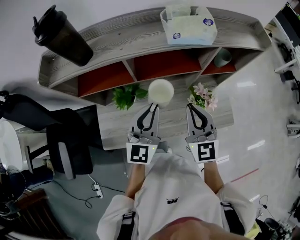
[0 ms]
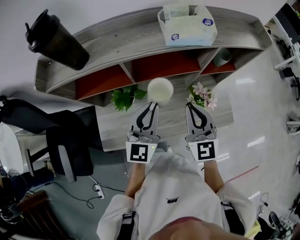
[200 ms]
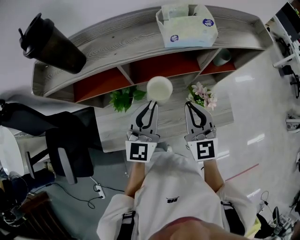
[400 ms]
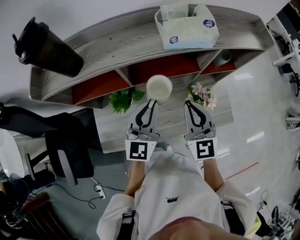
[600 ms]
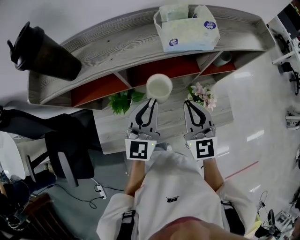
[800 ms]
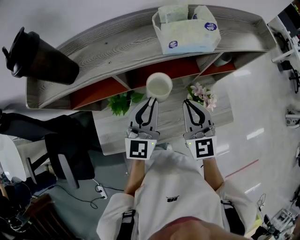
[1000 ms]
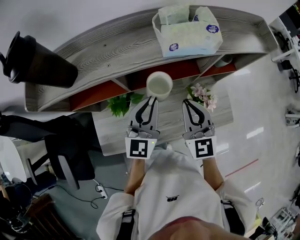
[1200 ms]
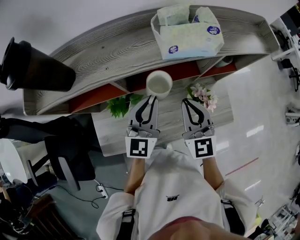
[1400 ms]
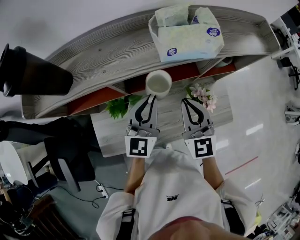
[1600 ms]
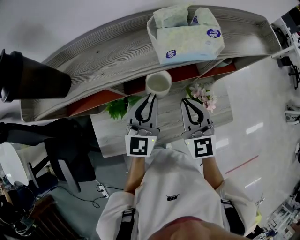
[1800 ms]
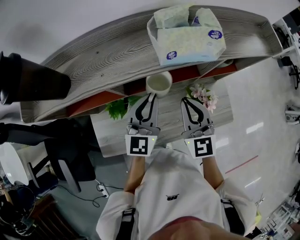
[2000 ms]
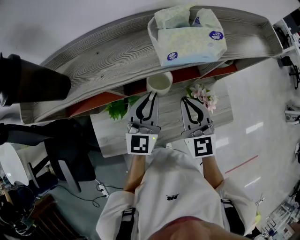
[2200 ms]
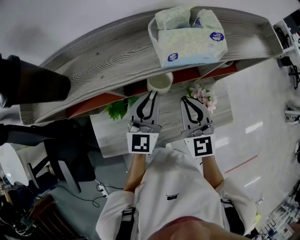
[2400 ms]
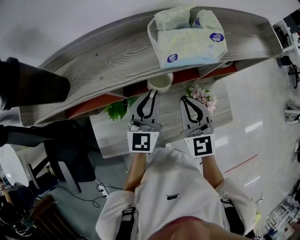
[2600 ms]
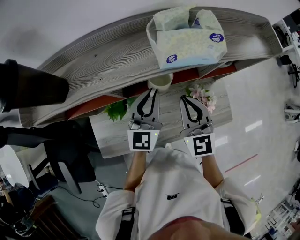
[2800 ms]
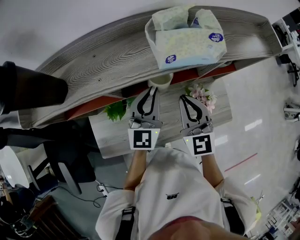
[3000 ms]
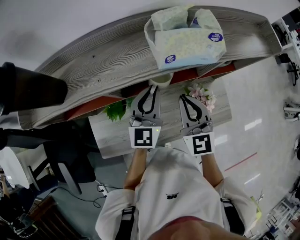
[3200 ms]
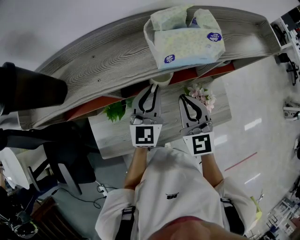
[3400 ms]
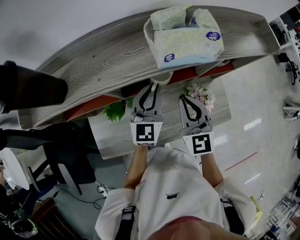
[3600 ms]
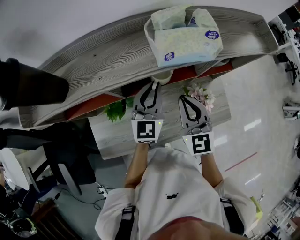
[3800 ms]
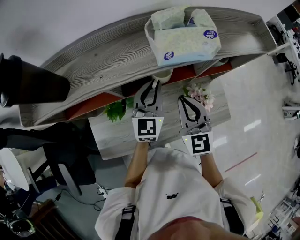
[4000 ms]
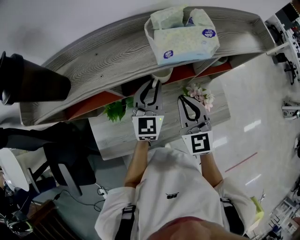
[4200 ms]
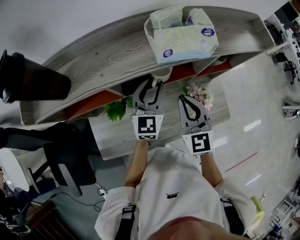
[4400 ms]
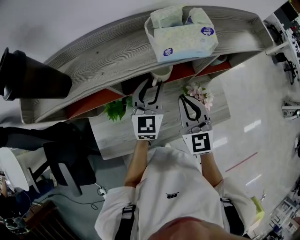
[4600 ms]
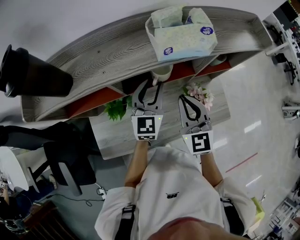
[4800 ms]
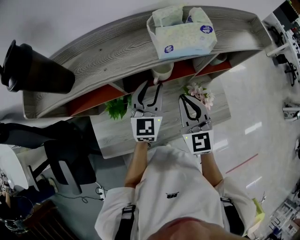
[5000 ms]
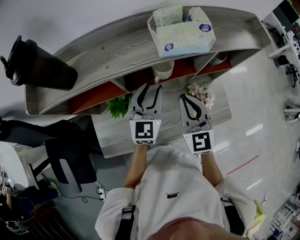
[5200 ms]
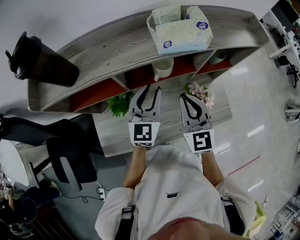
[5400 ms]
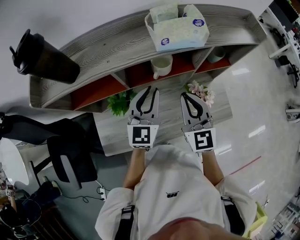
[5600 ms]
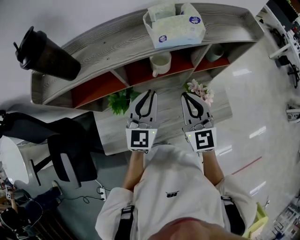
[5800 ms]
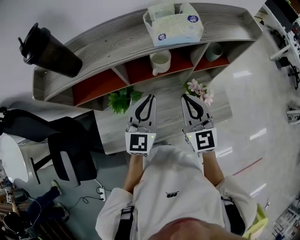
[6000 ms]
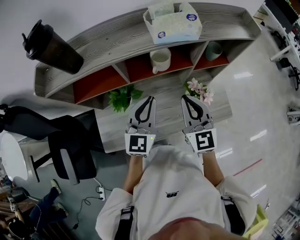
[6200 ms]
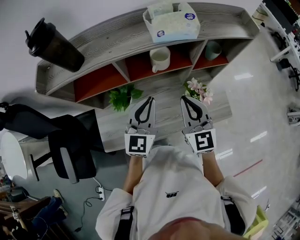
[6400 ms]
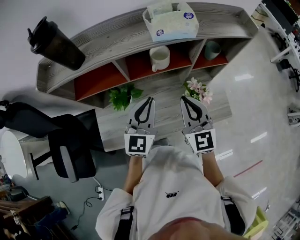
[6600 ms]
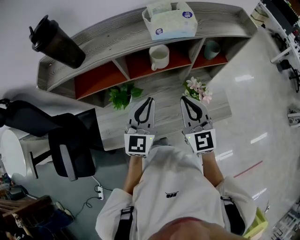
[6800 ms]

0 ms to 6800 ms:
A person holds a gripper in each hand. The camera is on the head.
0 ms to 1400 ms: Both grippers move forward, roughly 10 cm.
1400 ms to 2800 ms: There are only small adjustments of the grippers.
2800 ms to 4000 ms: The grippers move only a little.
4000 ms to 5400 ms: The left gripper travels backward by about 5 cm.
5400 ms to 6800 ms: The left gripper shifts some 10 cm backward, and closes its fingers; the right gripper is displaced backward by about 5 cm.

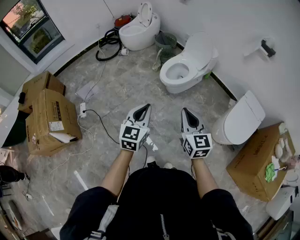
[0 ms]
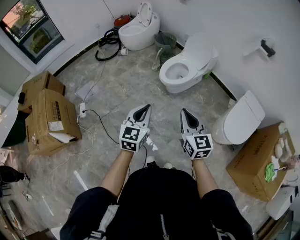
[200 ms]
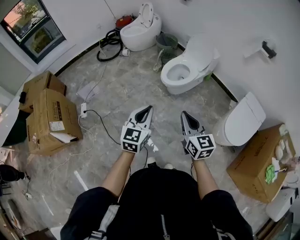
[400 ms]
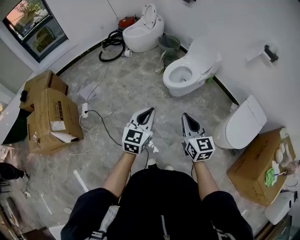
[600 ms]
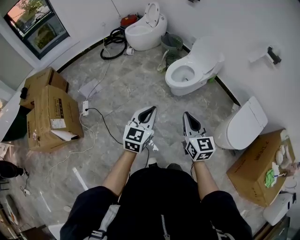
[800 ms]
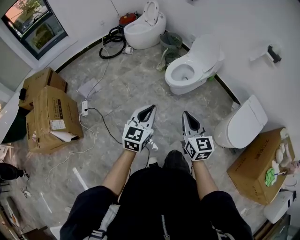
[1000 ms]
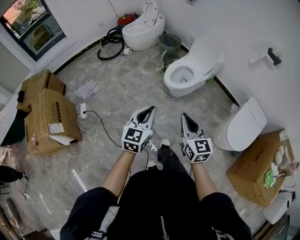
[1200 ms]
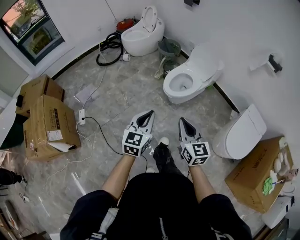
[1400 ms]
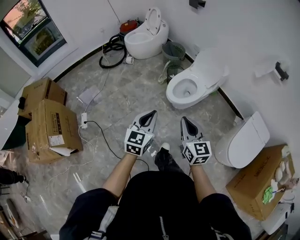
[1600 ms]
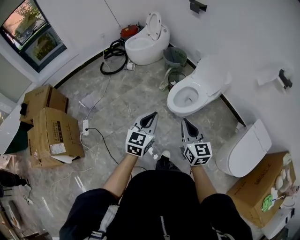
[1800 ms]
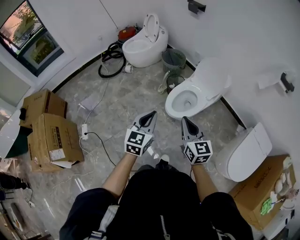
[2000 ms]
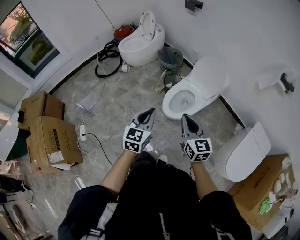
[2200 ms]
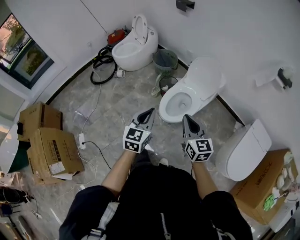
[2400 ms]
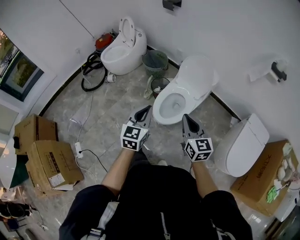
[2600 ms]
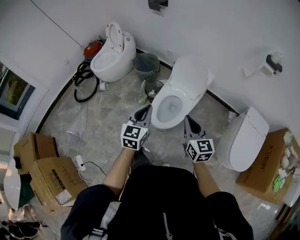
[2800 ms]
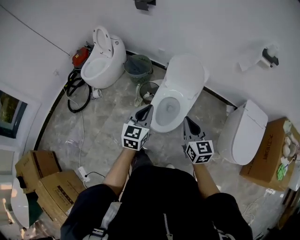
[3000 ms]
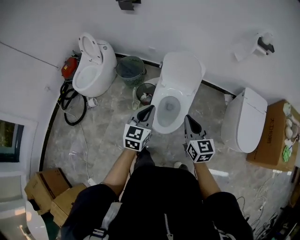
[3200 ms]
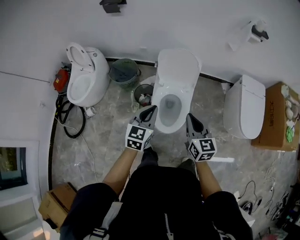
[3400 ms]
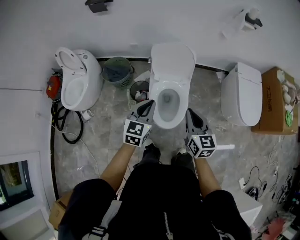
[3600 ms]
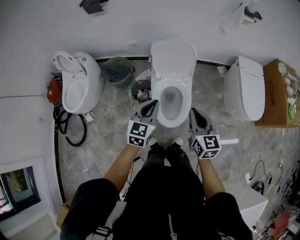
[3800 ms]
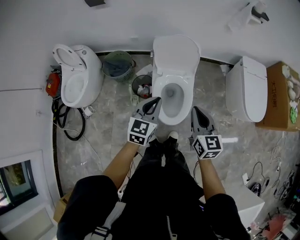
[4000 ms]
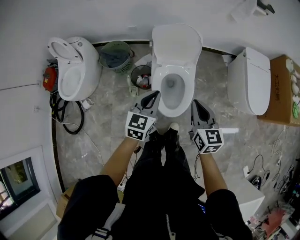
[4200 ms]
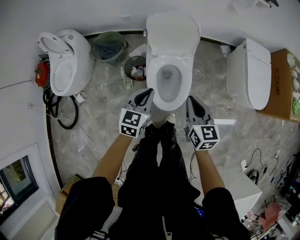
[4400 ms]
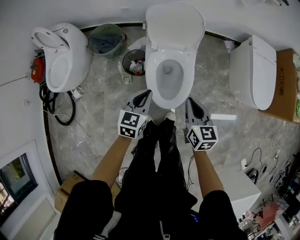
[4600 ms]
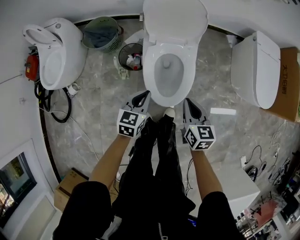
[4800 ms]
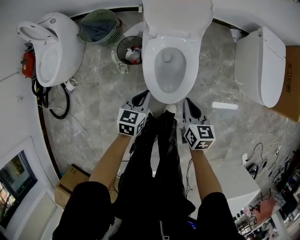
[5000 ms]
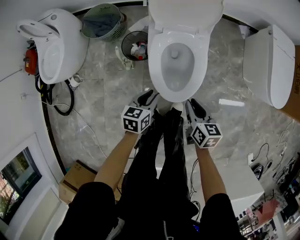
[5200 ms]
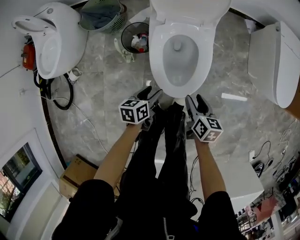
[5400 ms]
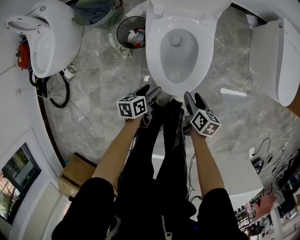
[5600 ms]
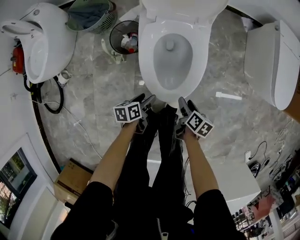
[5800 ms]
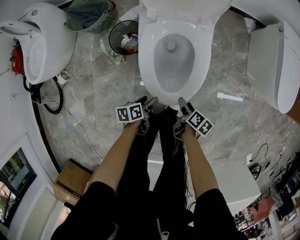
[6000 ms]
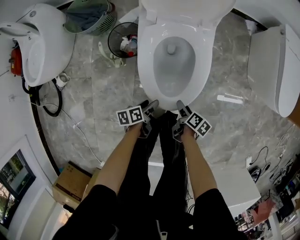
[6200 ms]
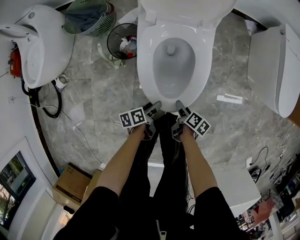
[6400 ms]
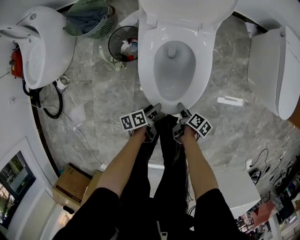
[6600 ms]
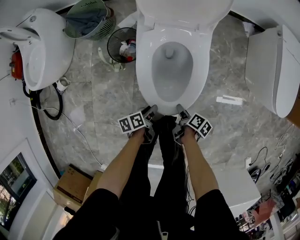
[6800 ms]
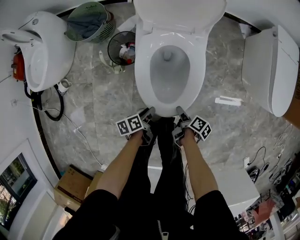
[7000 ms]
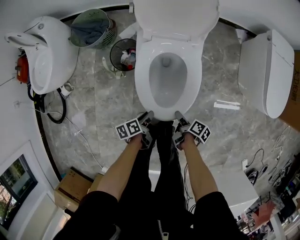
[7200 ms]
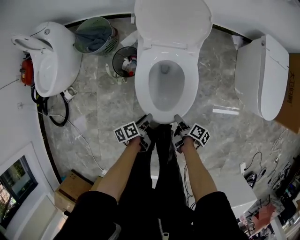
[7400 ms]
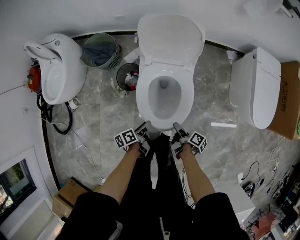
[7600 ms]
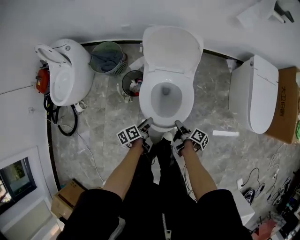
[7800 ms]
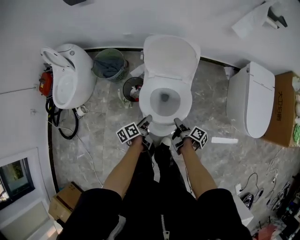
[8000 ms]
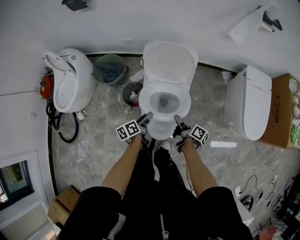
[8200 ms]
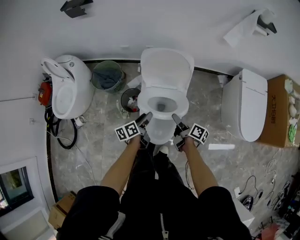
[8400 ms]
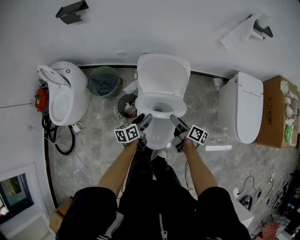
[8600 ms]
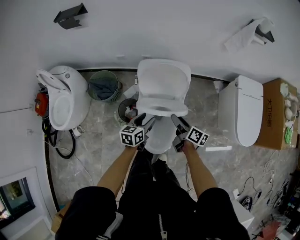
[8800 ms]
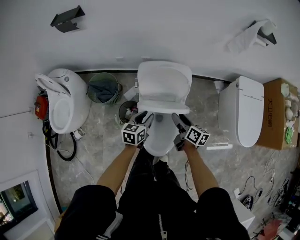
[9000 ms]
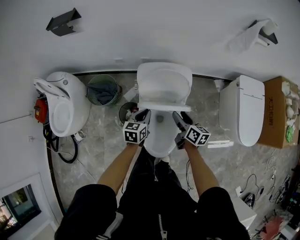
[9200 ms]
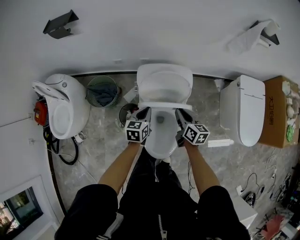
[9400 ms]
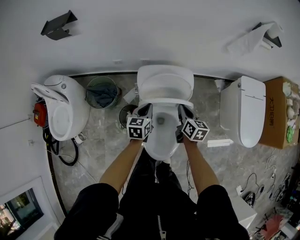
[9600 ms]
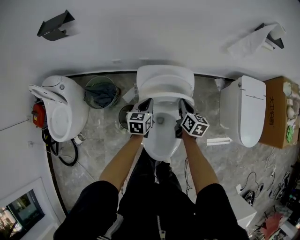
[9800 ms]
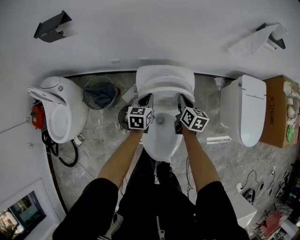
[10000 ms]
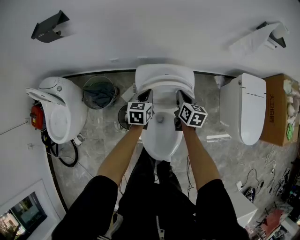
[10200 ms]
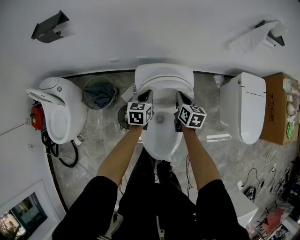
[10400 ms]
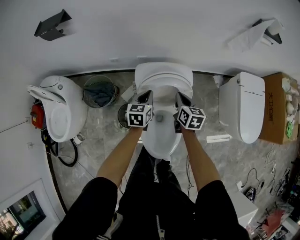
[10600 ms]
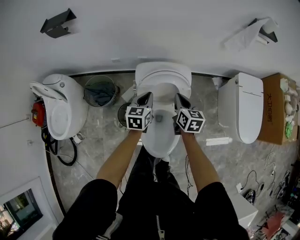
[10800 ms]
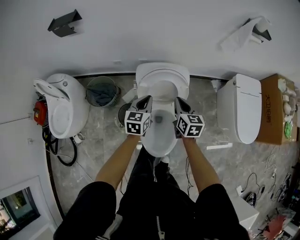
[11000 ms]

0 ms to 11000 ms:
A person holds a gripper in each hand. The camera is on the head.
0 ms to 1600 ms: Both grippers move forward, about 15 cm.
1600 ms to 3200 ms: The left gripper shifts by approximately 50 cm, and changes its angle by approximately 30 degrees; the right gripper shifts by approximately 40 cm, and rotates some 30 degrees.
3200 ms to 4800 ms: Both grippers travel together downward, roughly 25 cm. The right gripper changes its angle by some 30 degrees; the left gripper rotates approximately 30 degrees.
4800 ms to 6200 ms: Both grippers travel together downward, approximately 35 cm. The right gripper rolls clockwise, seen from behind, by approximately 50 degrees, and opens its fingers. The left gripper twists about 60 degrees counterclockwise, seen from behind, and opens its fingers.
6200 ms to 7800 ms: Both grippers move upward, about 25 cm. The left gripper closes up; the right gripper changes its angle by approximately 30 degrees, and closes.
7800 ms to 9400 ms: Both grippers move forward and upward, roughly 35 cm. The left gripper twists about 60 degrees clockwise, seen from behind, and closes its fingers, while the right gripper rotates around the line of its fingers by roughly 60 degrees, counterclockwise from behind, and opens, then closes again.
9400 ms to 11000 ms: Both grippers travel together upward, approximately 5 cm. The left gripper goes forward and returns, roughly 10 cm each way; the right gripper moves roughly 10 cm forward and comes back.

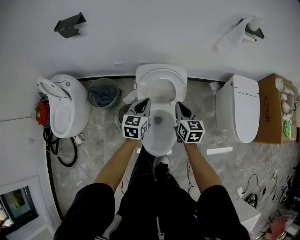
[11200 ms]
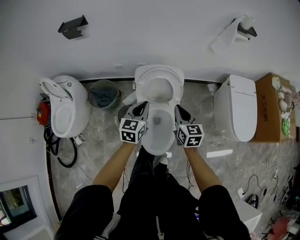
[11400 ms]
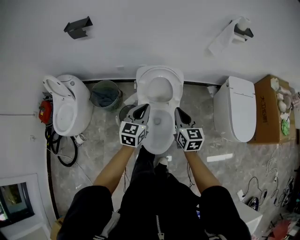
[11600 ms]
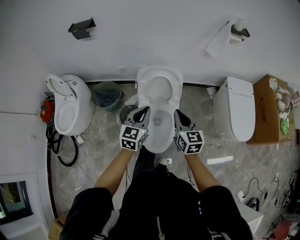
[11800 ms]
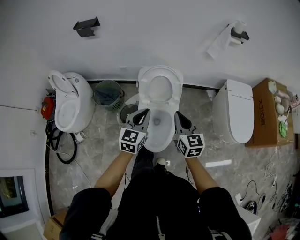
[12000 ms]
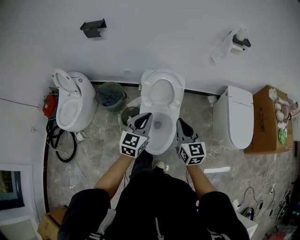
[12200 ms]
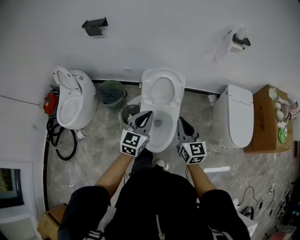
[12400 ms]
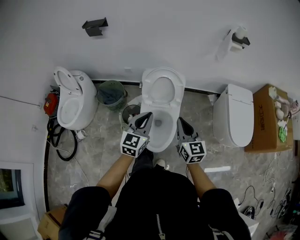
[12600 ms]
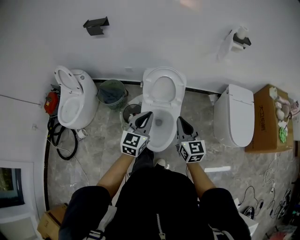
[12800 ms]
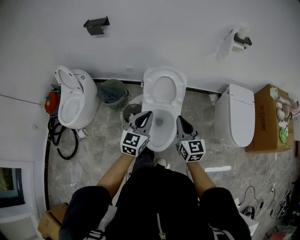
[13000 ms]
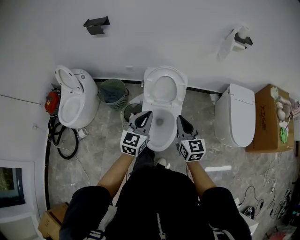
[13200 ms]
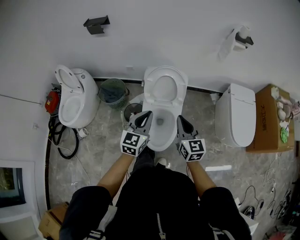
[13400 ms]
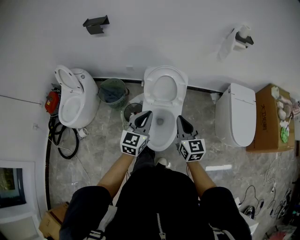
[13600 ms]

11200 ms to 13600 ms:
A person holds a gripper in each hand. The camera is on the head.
11200 ms to 12400 ms: Both grippers move backward and upward, about 25 cm.
12400 ms to 13600 ms: The grippers move only a little.

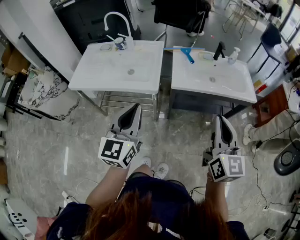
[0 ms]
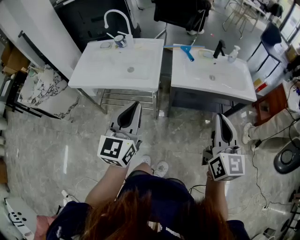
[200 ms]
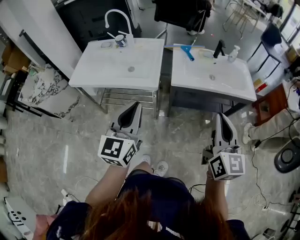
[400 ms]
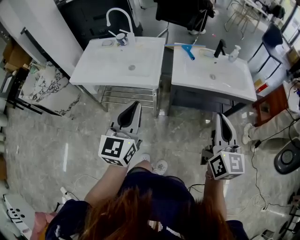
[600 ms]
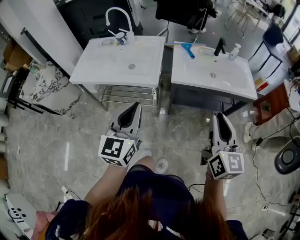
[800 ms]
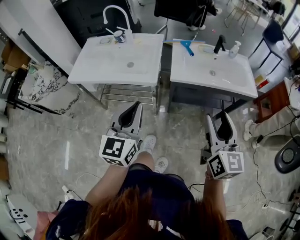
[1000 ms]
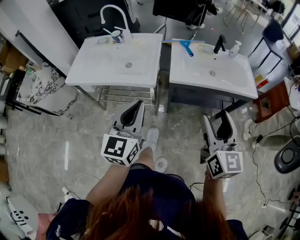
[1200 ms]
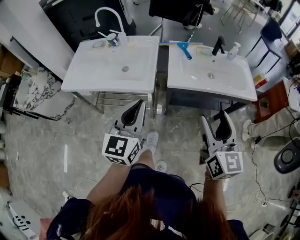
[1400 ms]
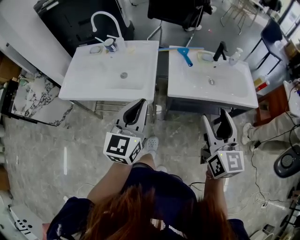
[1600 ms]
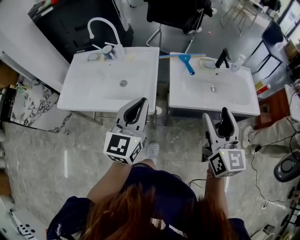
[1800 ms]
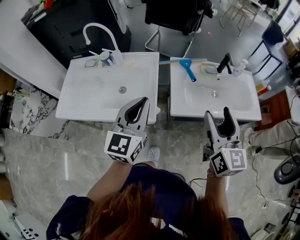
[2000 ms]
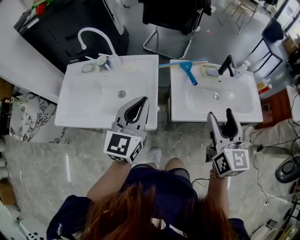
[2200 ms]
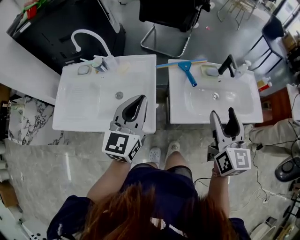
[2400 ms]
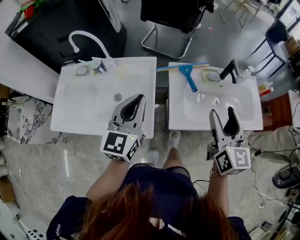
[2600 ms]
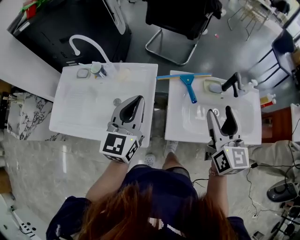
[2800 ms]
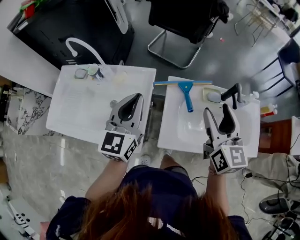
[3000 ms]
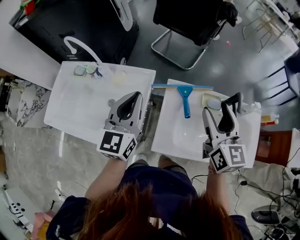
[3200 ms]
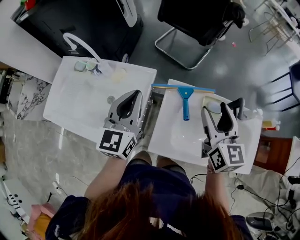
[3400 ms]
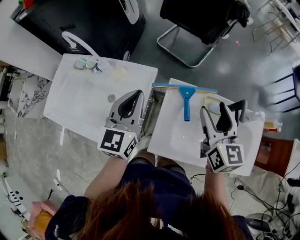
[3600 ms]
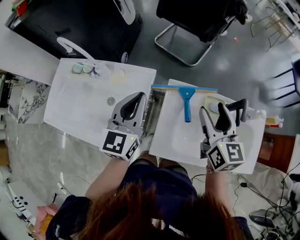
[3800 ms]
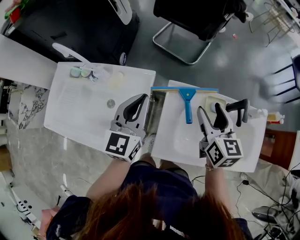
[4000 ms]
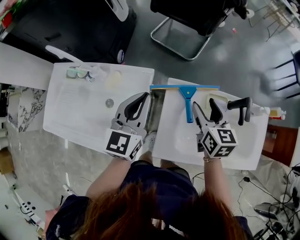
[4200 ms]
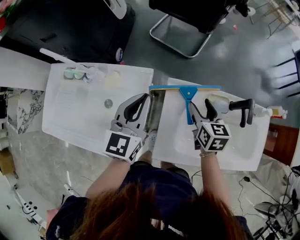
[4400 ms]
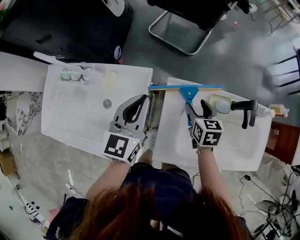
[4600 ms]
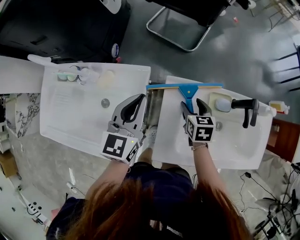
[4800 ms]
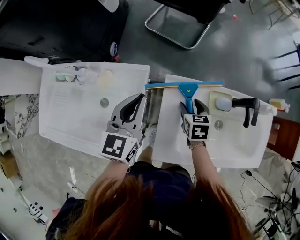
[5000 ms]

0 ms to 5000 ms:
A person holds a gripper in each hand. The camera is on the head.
0 ms to 1600 ms: The grippers both shift forward by roughly 15 cm. The right gripper opens.
1600 ms to 3400 ms: The two grippers travel together, forward, some 50 cm.
3400 ms to 5000 ms: The right gripper travels downward by approximately 30 cm, and tips its fingers downward by some 40 degrees, while the left gripper is displaced downward and forward by some 15 cm.
